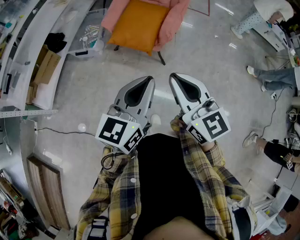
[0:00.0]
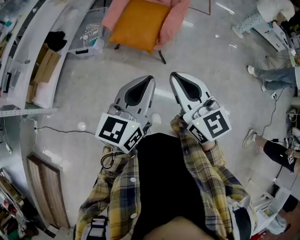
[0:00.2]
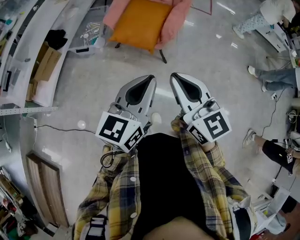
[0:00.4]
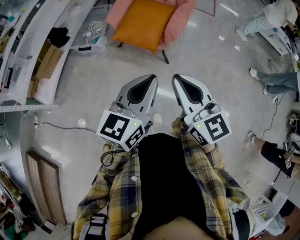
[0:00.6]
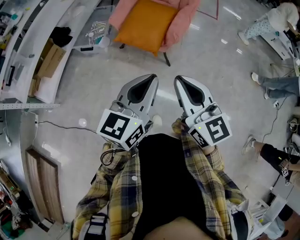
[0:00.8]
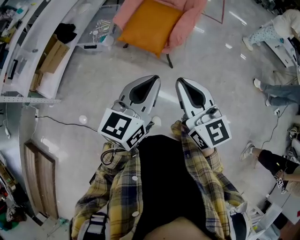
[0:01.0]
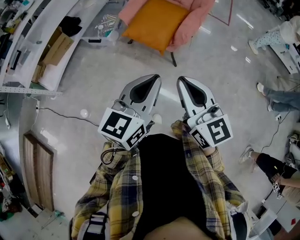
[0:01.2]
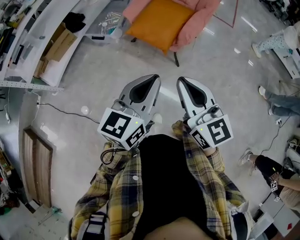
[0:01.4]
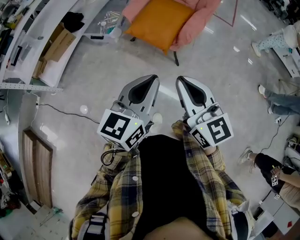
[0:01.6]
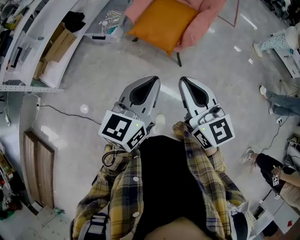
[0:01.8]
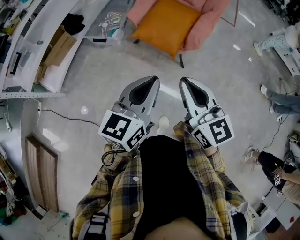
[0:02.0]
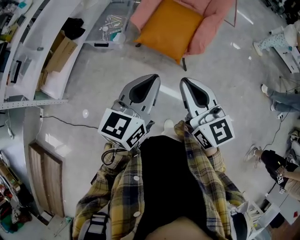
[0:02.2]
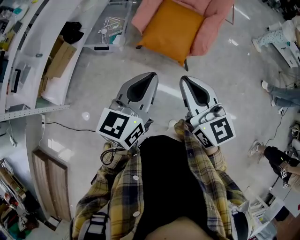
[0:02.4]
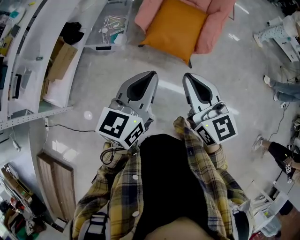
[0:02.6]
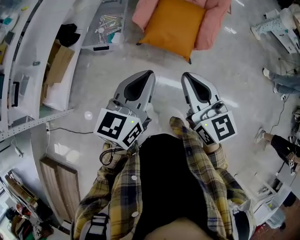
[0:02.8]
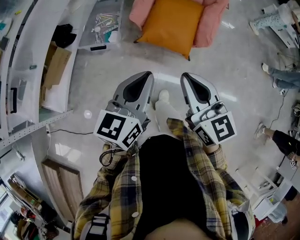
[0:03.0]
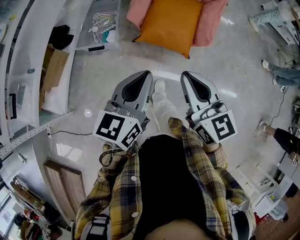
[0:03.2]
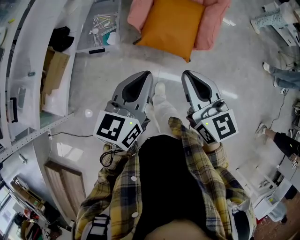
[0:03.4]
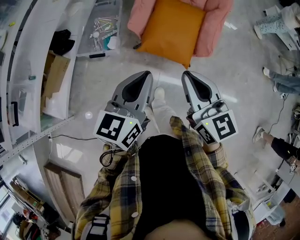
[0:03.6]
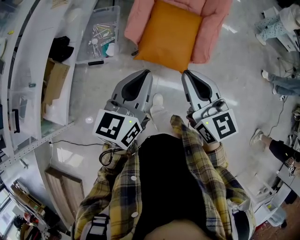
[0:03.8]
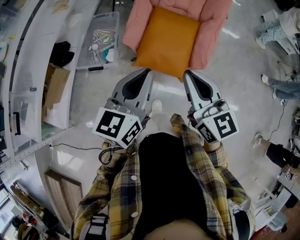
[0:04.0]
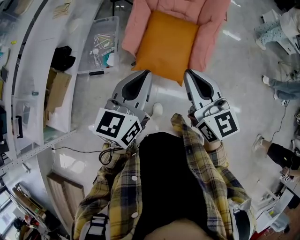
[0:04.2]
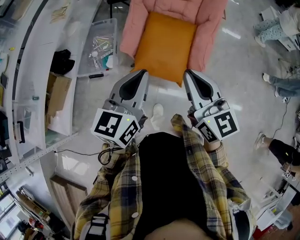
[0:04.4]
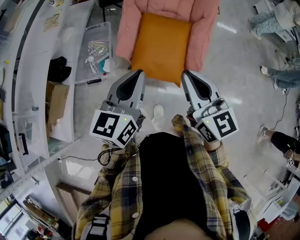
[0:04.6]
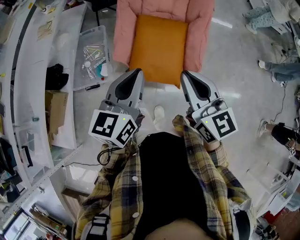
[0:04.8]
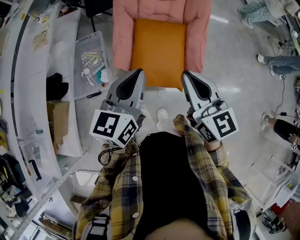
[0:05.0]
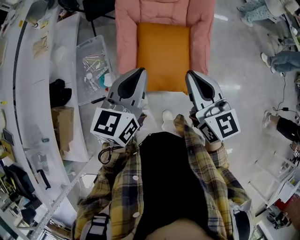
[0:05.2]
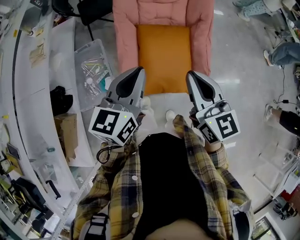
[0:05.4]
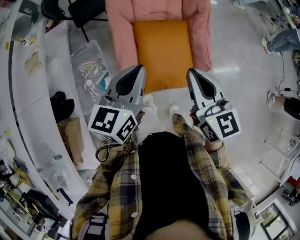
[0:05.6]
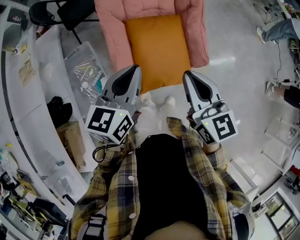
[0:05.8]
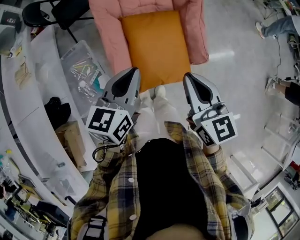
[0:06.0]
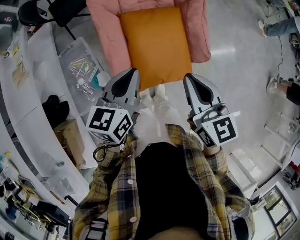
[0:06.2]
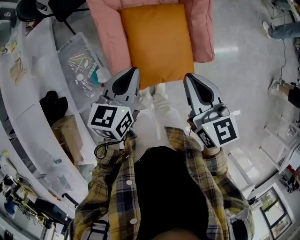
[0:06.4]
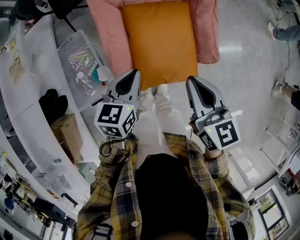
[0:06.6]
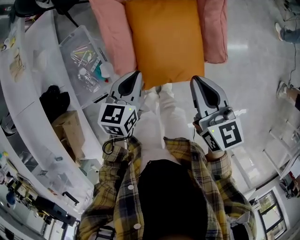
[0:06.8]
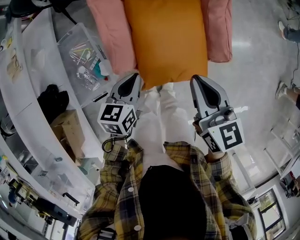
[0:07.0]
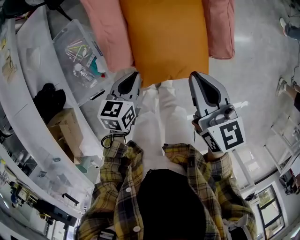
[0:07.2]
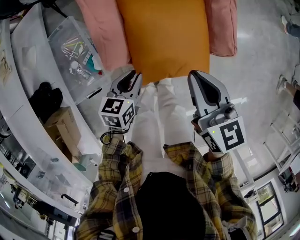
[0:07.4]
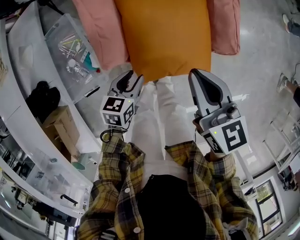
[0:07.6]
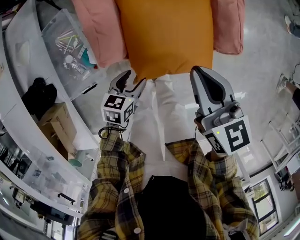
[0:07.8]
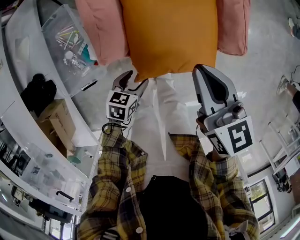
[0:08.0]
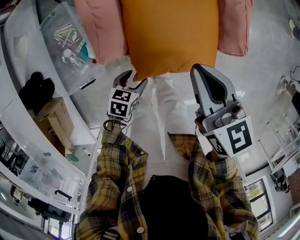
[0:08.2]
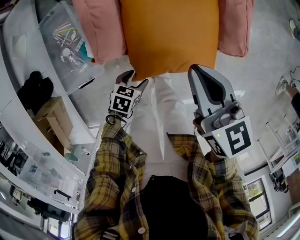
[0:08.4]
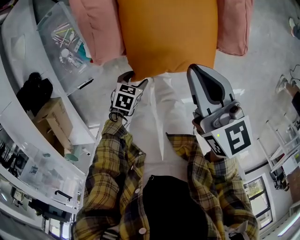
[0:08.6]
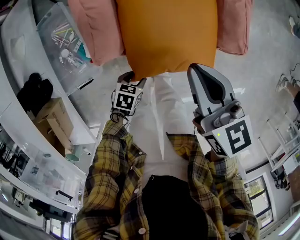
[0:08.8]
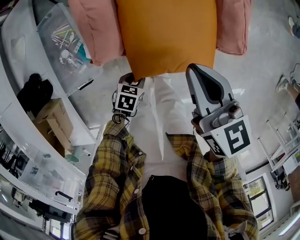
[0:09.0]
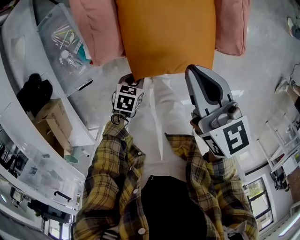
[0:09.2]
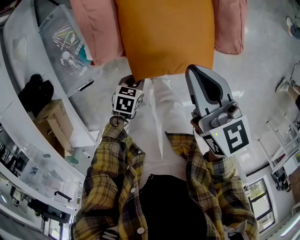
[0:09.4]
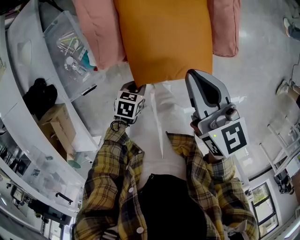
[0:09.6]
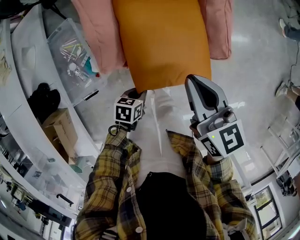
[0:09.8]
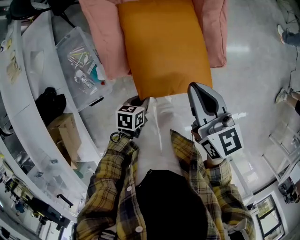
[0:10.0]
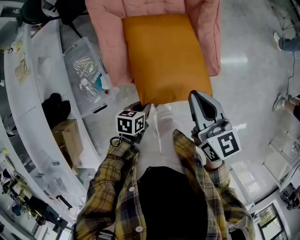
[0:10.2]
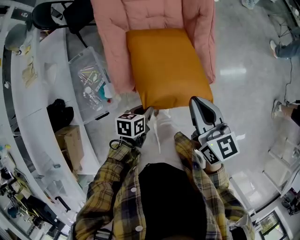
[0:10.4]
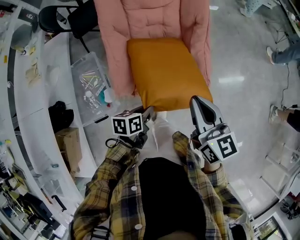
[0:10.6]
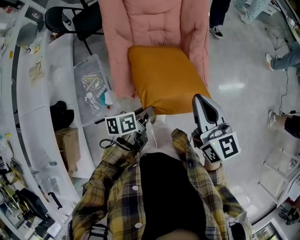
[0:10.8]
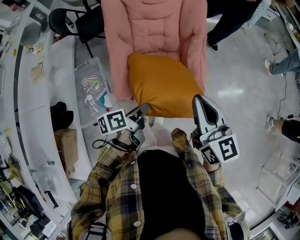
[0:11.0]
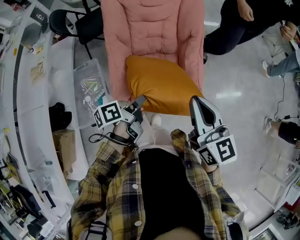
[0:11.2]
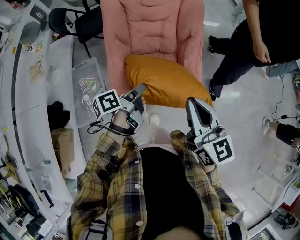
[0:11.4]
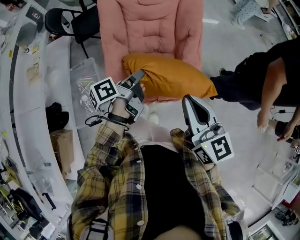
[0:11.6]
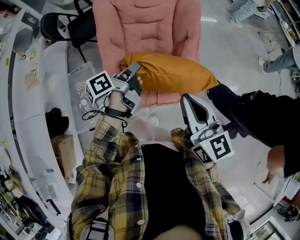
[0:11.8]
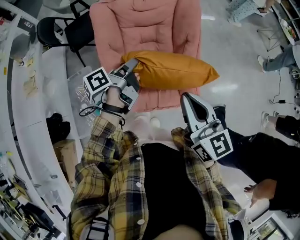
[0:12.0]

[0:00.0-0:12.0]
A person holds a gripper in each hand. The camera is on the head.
0:00.0 to 0:01.6: The grippers stay close to where they were, moving slightly.
0:01.6 to 0:03.0: Both grippers travel together to the left and forward, about 30 cm.
0:03.0 to 0:04.4: The right gripper travels forward and to the right by roughly 20 cm. Meanwhile the left gripper heads forward, covering approximately 20 cm.
0:04.4 to 0:06.0: The left gripper moves approximately 25 cm, and turns by about 30 degrees, while the right gripper moves some 20 cm, and rotates about 30 degrees.
0:06.0 to 0:07.6: The right gripper is displaced downward by roughly 20 cm. The left gripper goes some 35 cm downward, rotates roughly 30 degrees, and opens up.
0:07.6 to 0:09.0: The left gripper heads downward and backward, covering approximately 15 cm, changes its angle by approximately 20 degrees, and opens, then closes again.
0:09.0 to 0:10.4: The right gripper is displaced upward and to the right by roughly 20 cm; the left gripper moves upward, about 25 cm, and rotates roughly 20 degrees.
0:10.4 to 0:12.0: The left gripper travels forward and upward by approximately 35 cm, and tilts its fingers roughly 30 degrees upward. The right gripper moves upward and forward, some 15 cm.

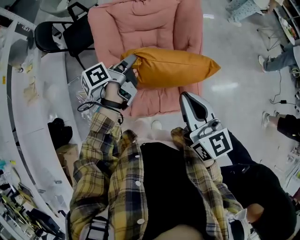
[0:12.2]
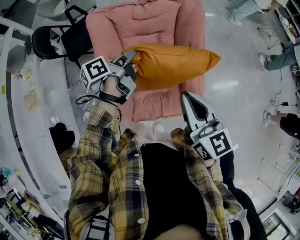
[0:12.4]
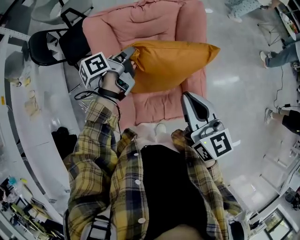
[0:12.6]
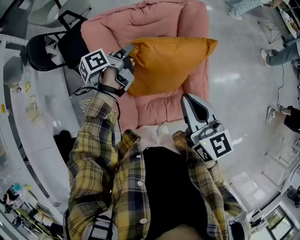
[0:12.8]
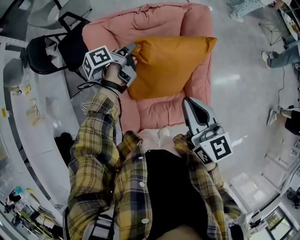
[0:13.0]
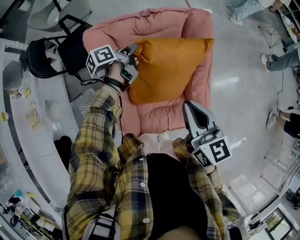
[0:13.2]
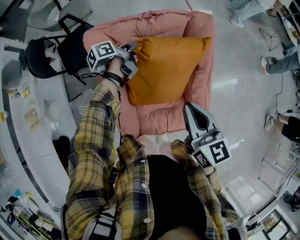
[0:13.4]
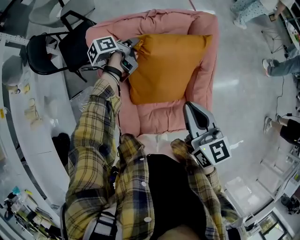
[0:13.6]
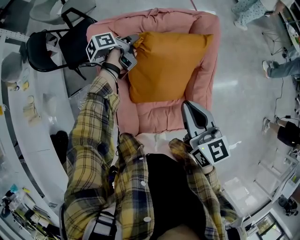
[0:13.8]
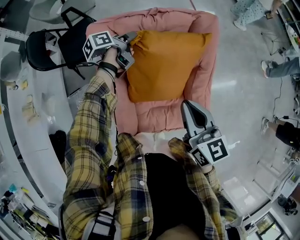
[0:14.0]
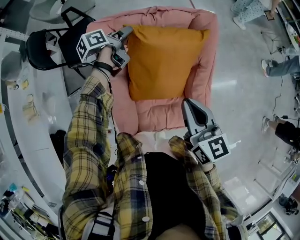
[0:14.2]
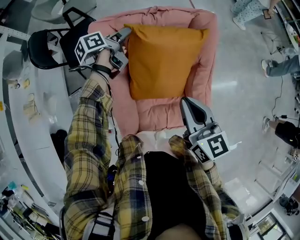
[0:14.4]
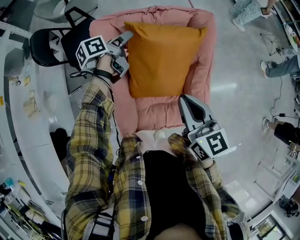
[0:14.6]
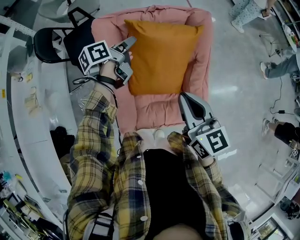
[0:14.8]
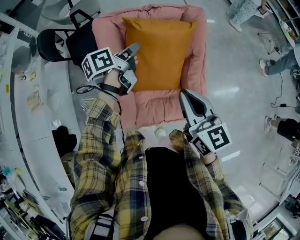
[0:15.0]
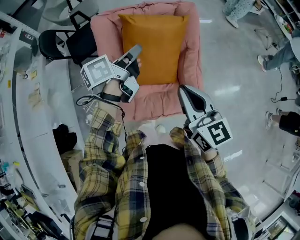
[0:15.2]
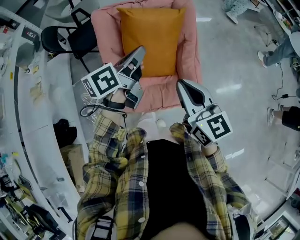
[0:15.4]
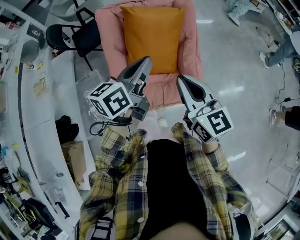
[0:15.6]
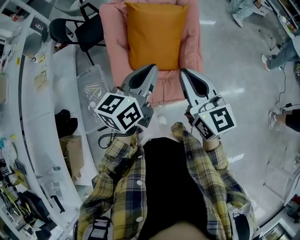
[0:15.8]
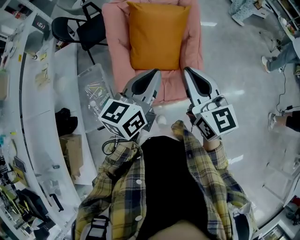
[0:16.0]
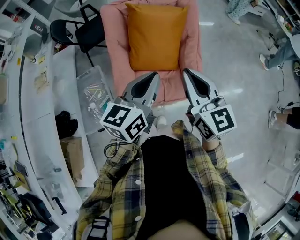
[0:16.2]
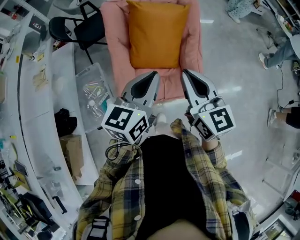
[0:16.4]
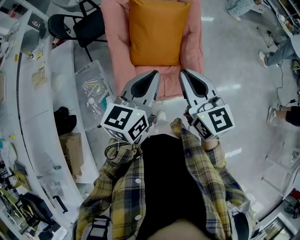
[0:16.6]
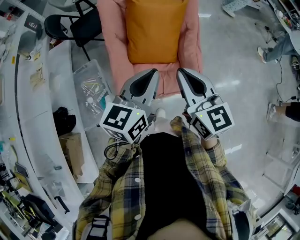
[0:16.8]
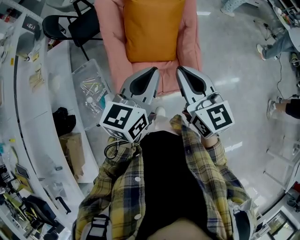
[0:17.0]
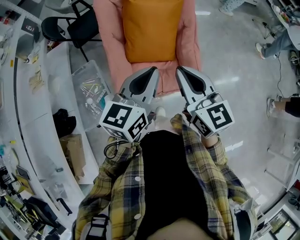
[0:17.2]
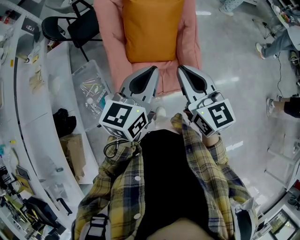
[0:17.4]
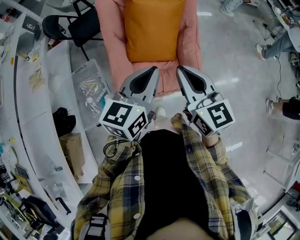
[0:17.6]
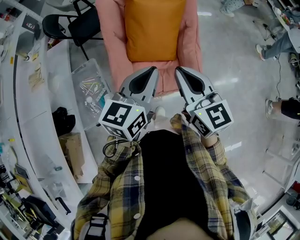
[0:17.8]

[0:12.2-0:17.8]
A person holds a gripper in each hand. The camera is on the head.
0:12.2 to 0:13.6: The right gripper travels forward by some 20 cm. The left gripper is displaced forward by some 30 cm.
0:13.6 to 0:15.0: The left gripper shifts approximately 20 cm backward and upward, changes its angle by about 20 degrees, and opens, then closes again; the right gripper goes about 10 cm backward.
0:15.0 to 0:16.4: The right gripper moves backward, roughly 15 cm. Meanwhile the left gripper travels backward by about 30 cm, and twists about 40 degrees clockwise, seen from behind.
0:16.4 to 0:17.8: The grippers make only small movements.

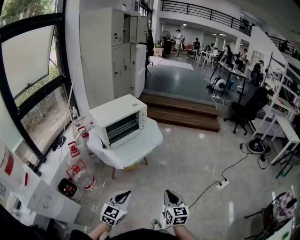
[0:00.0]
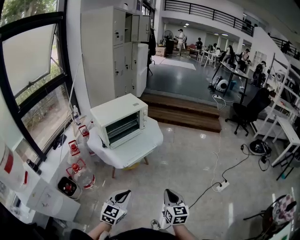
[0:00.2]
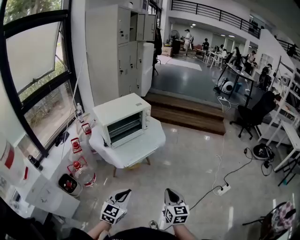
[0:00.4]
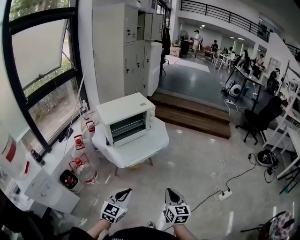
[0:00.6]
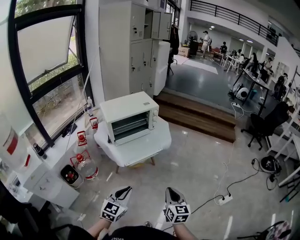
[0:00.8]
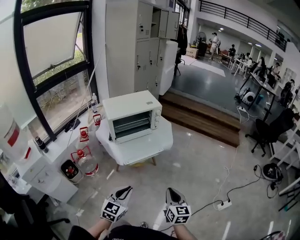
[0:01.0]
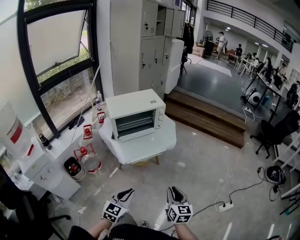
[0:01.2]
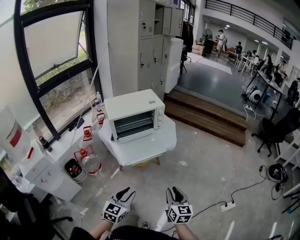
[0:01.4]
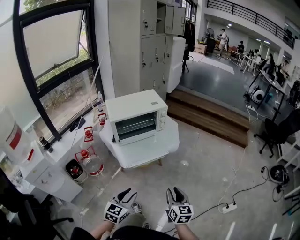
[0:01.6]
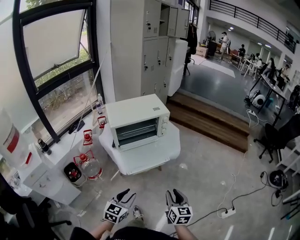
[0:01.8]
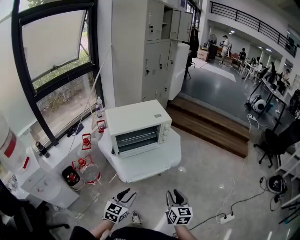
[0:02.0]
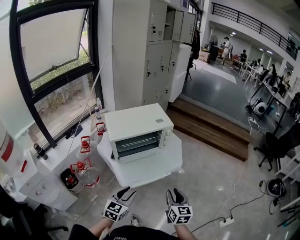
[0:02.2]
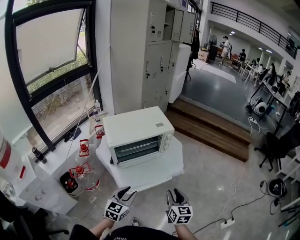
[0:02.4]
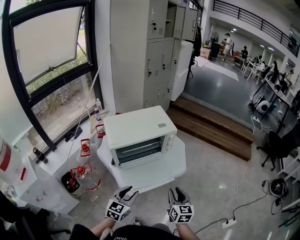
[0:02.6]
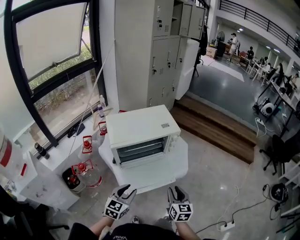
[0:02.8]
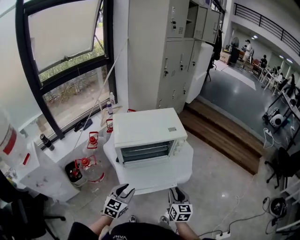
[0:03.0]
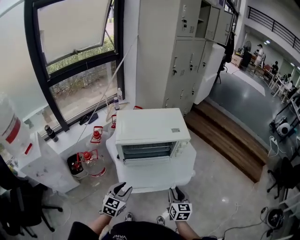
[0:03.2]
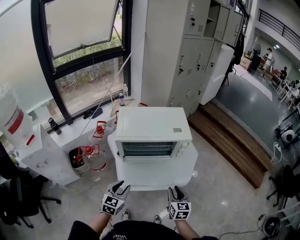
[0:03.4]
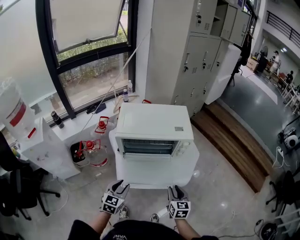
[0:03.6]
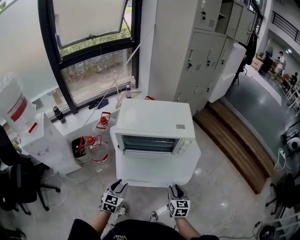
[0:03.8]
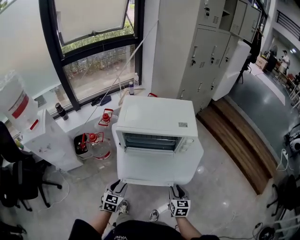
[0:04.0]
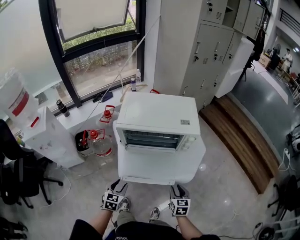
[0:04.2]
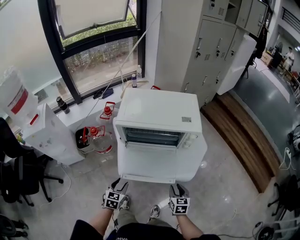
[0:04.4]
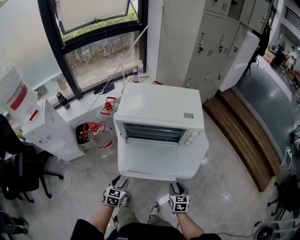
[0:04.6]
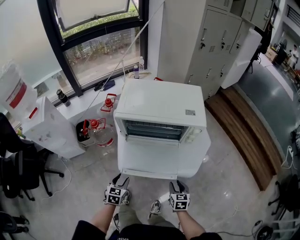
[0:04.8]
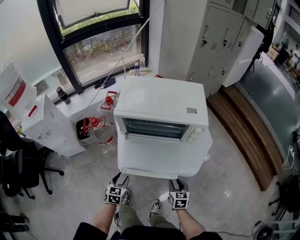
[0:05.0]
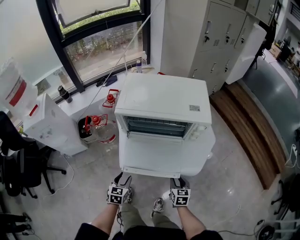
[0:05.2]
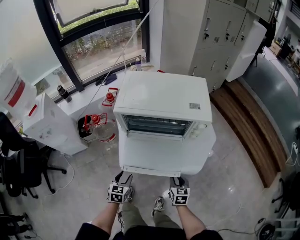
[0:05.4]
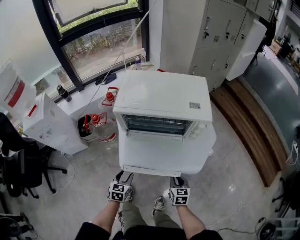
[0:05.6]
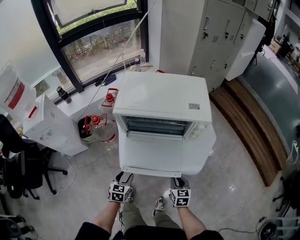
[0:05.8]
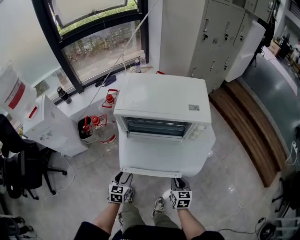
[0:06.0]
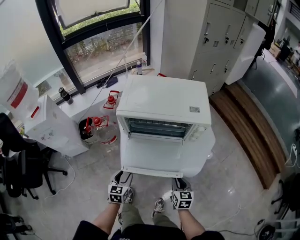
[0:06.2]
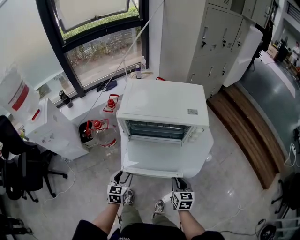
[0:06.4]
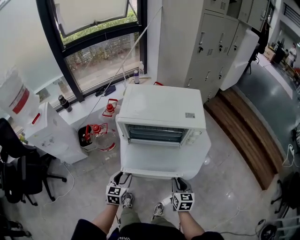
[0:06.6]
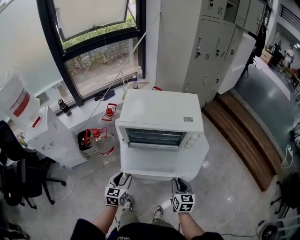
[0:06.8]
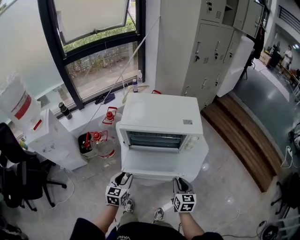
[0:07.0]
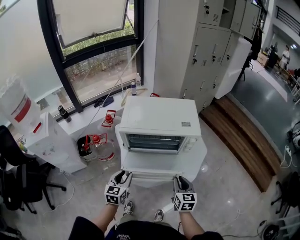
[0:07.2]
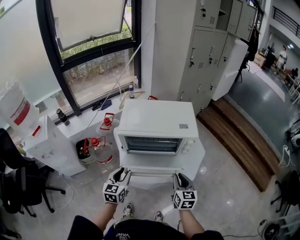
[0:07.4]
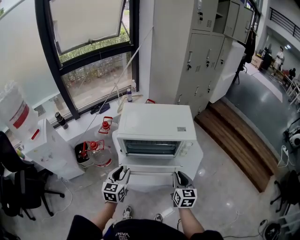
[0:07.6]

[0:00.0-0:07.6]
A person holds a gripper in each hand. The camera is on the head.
0:00.0 to 0:01.6: Both grippers move forward and to the right, approximately 15 cm. The left gripper changes its angle by some 20 degrees, and opens its fingers. The right gripper opens.
0:01.6 to 0:03.0: Both grippers move forward, approximately 25 cm.
0:03.0 to 0:04.6: The grippers both shift downward by some 15 cm. The left gripper turns by about 30 degrees. Meanwhile the right gripper swivels roughly 30 degrees.
0:04.6 to 0:06.0: The grippers stay close to where they were, moving slightly.
0:06.0 to 0:07.6: The left gripper shifts roughly 20 cm upward and forward; the right gripper heads upward, covering approximately 20 cm.
